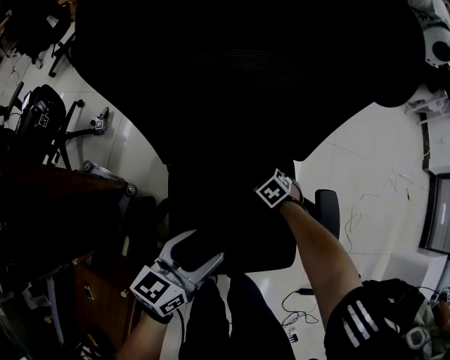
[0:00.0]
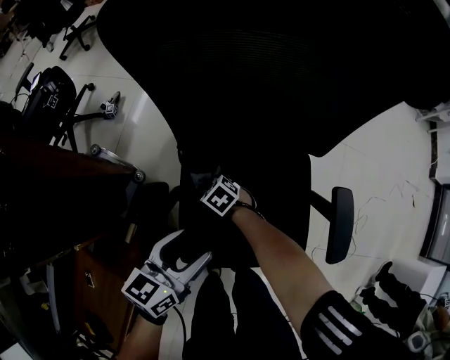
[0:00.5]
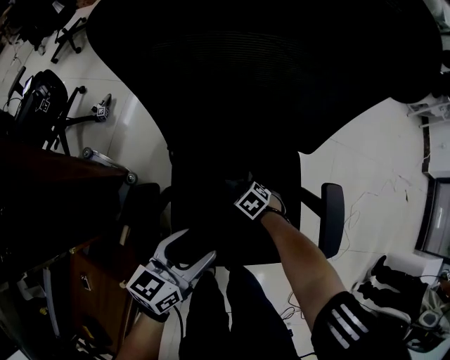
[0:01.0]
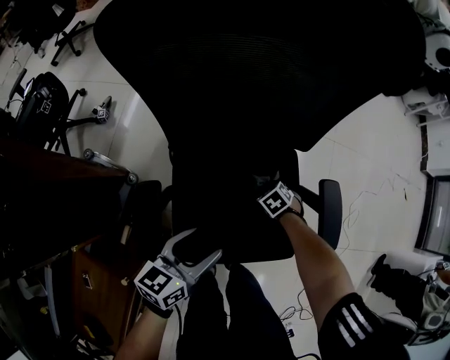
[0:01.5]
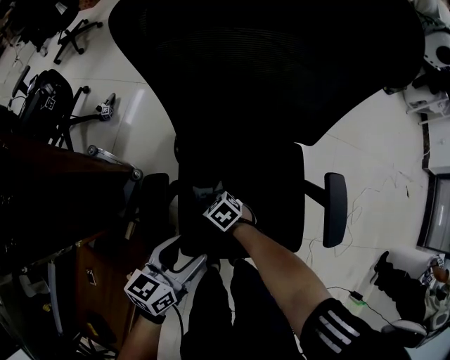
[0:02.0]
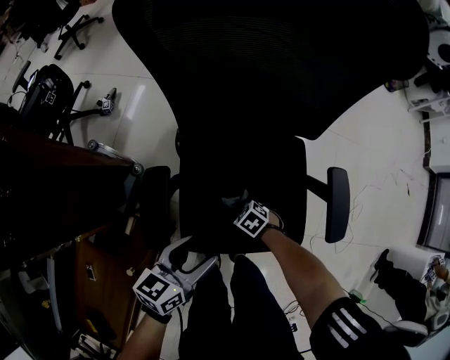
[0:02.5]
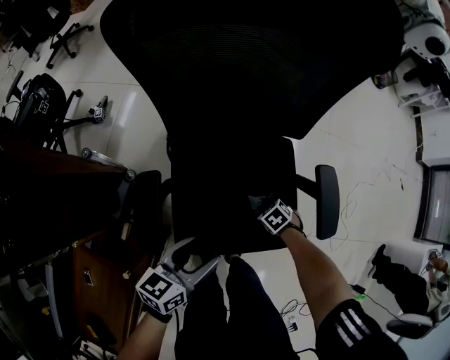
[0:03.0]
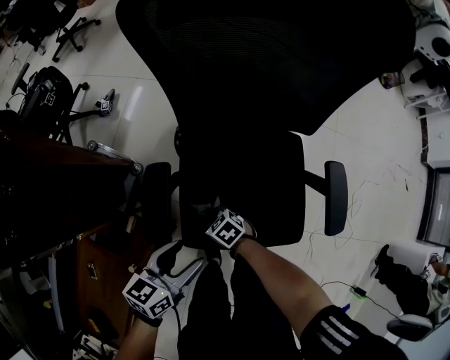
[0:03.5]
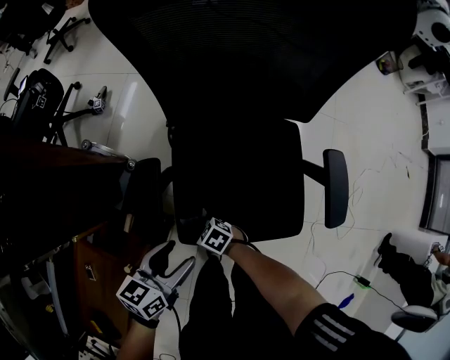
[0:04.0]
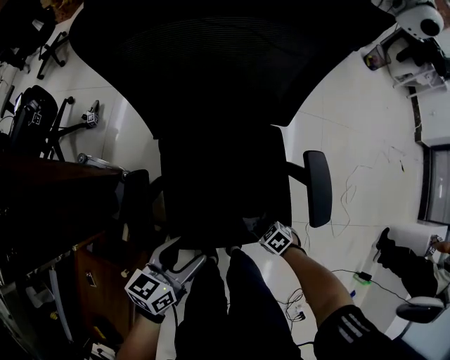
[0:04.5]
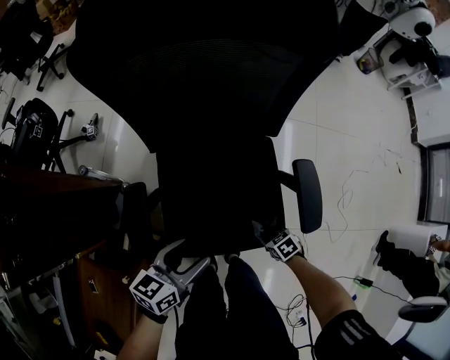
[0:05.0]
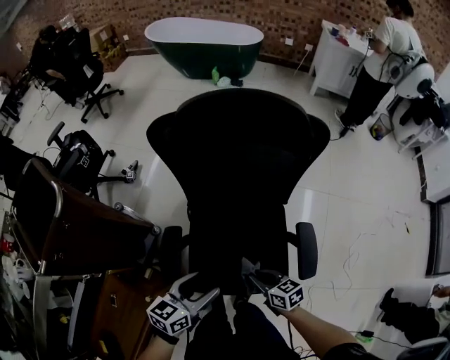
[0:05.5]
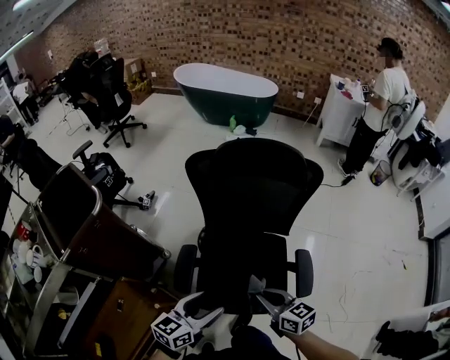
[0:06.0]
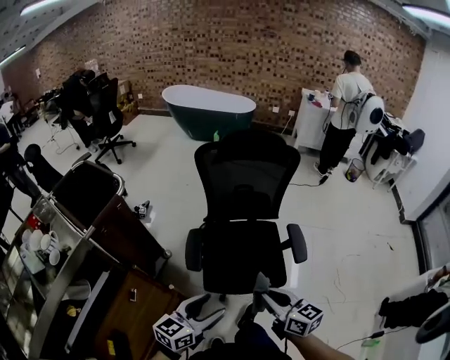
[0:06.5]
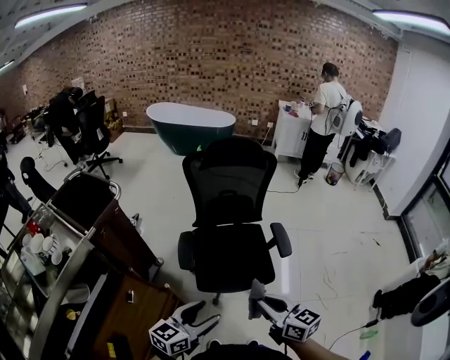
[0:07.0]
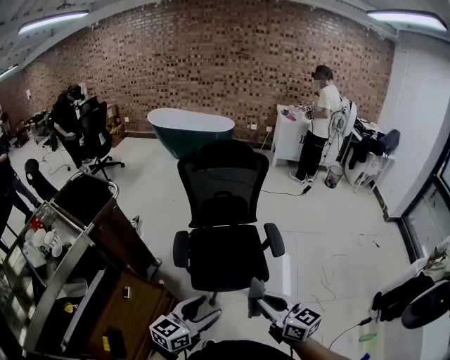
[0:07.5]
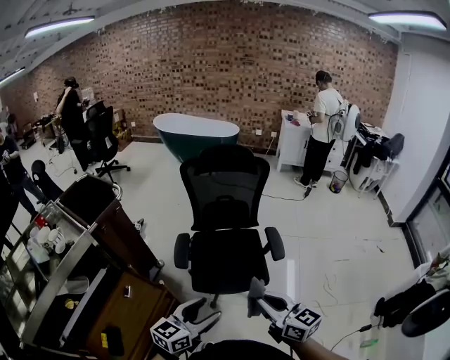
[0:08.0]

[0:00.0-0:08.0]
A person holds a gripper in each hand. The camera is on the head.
0:00.0 to 0:02.0: The left gripper moves some 10 cm. Meanwhile the right gripper changes place by about 25 cm.
0:02.0 to 0:04.0: The left gripper changes place by roughly 5 cm.
0:04.0 to 0:06.0: The left gripper moves upward, about 25 cm. The right gripper shifts roughly 40 cm upward, and tips its fingers upward by roughly 30 degrees.
0:06.0 to 0:08.0: The left gripper goes about 30 cm backward, while the right gripper heads backward and upward, covering about 40 cm, and swivels roughly 20 degrees.

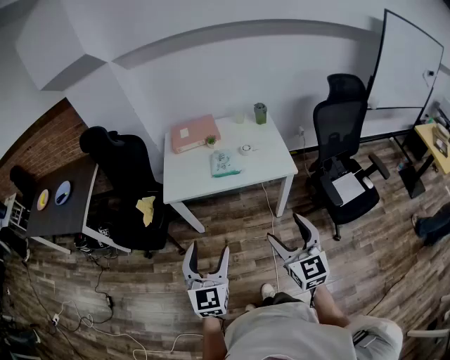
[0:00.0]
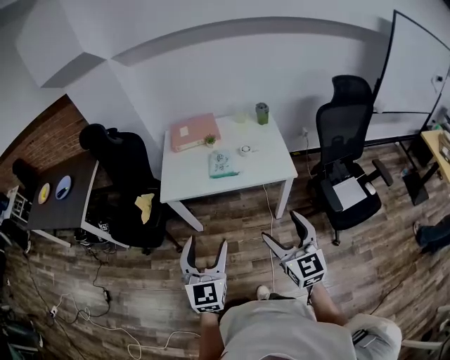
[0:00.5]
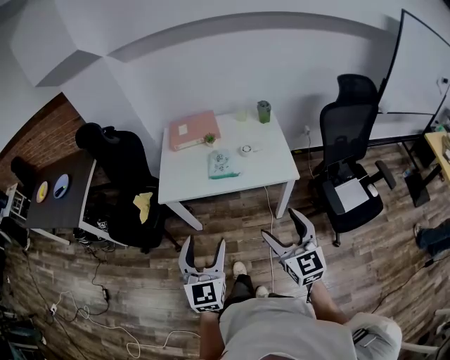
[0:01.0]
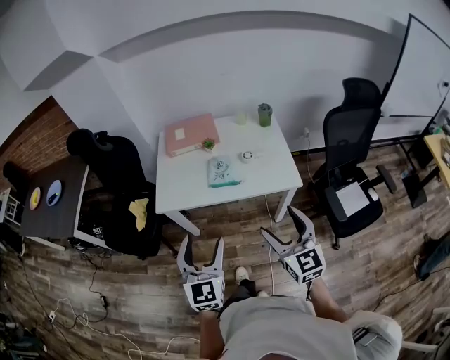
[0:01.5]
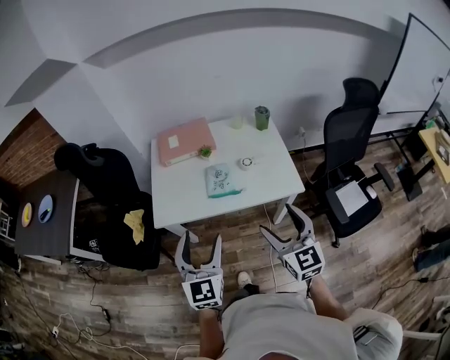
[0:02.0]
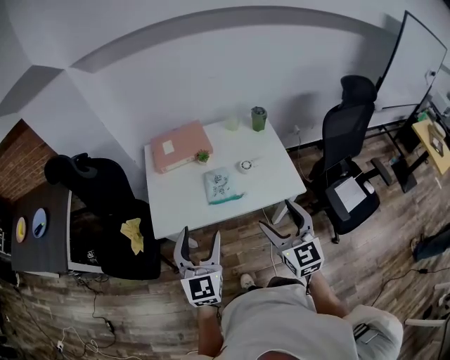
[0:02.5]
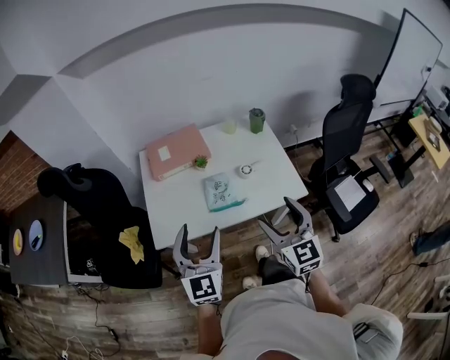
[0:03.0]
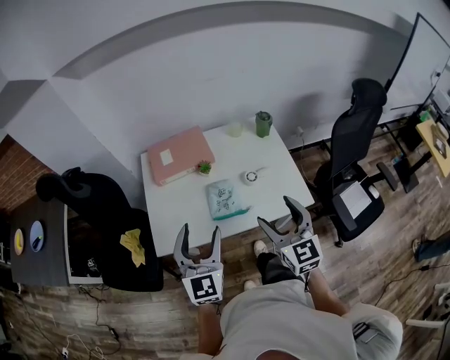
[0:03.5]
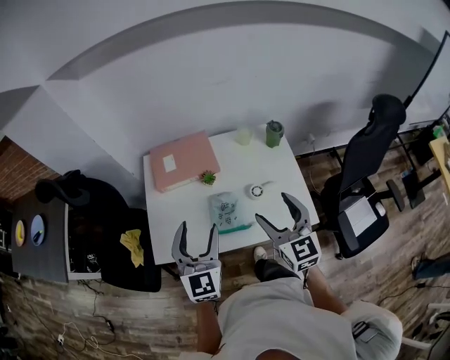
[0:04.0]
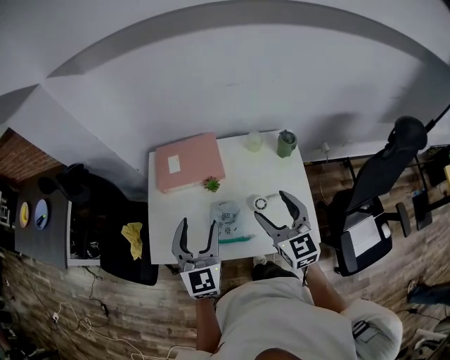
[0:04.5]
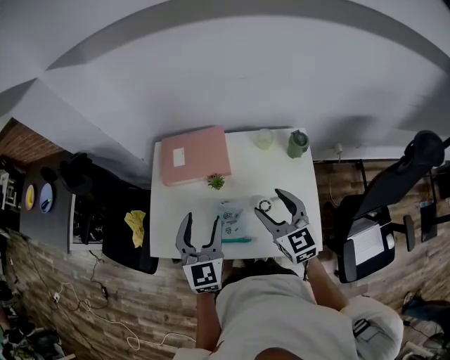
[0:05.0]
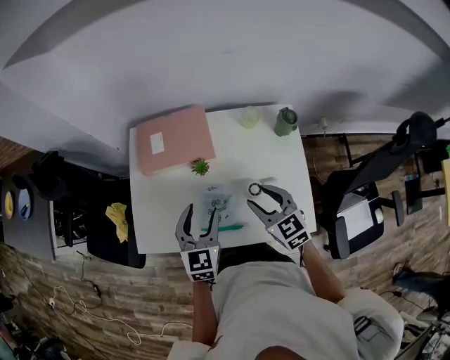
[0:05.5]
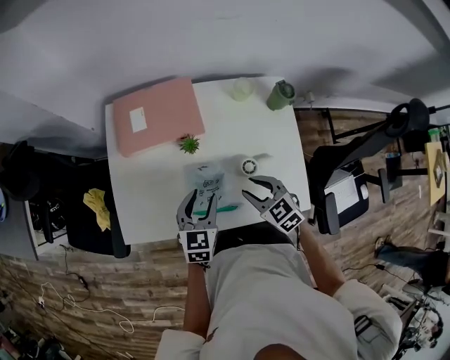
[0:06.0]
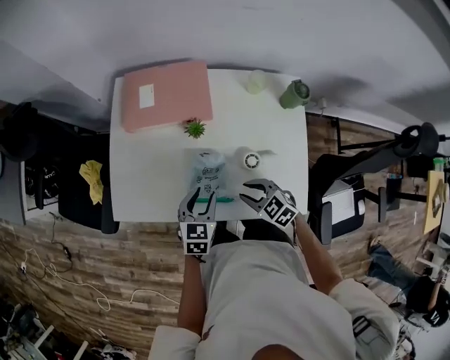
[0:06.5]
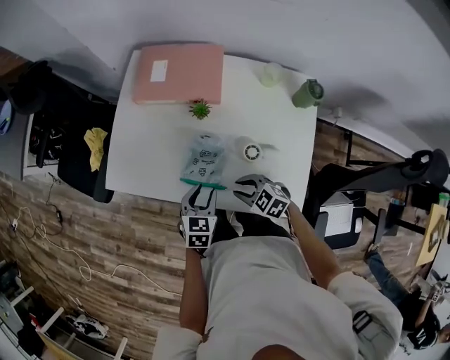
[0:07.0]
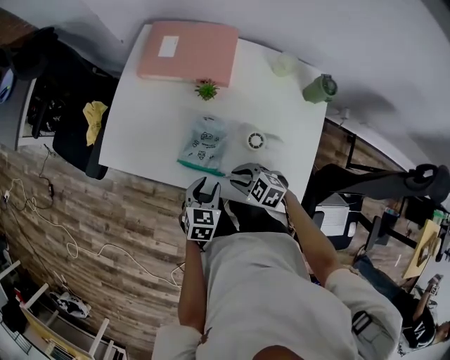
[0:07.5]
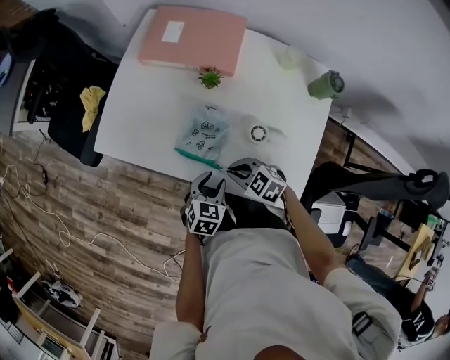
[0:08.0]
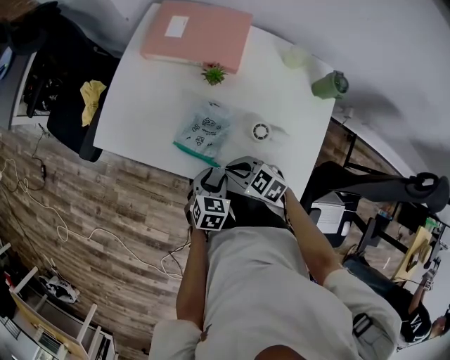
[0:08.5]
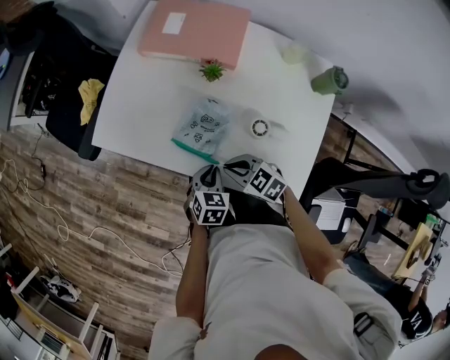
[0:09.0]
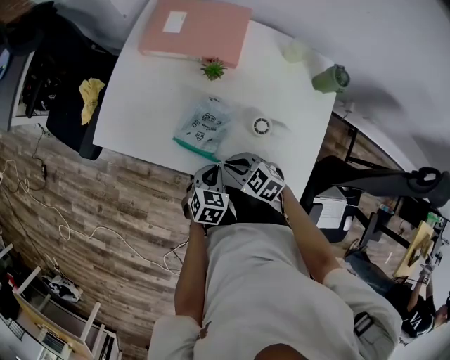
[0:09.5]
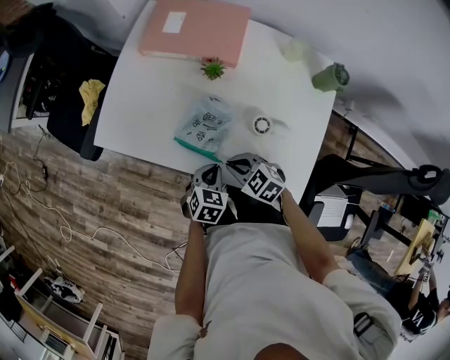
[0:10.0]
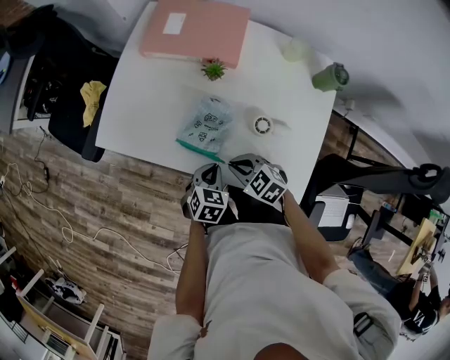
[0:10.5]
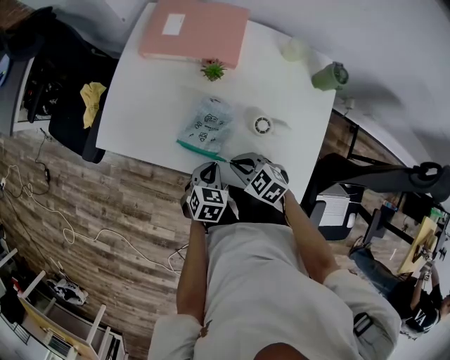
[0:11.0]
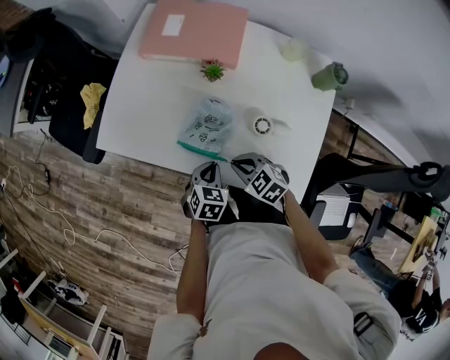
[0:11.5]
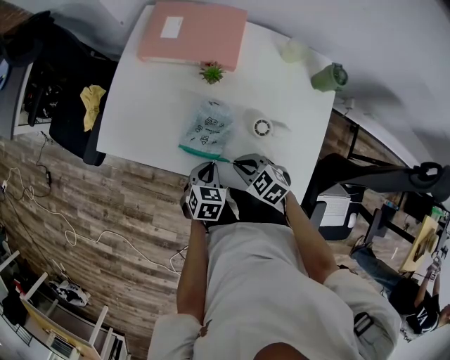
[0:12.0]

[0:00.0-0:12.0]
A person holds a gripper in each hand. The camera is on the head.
0:00.0 to 0:02.0: Both grippers move forward, some 20 cm.
0:02.0 to 0:04.0: Both grippers travel together forward, roughly 25 cm.
0:04.0 to 0:06.0: The right gripper is displaced downward by roughly 25 cm, tips its fingers downward by roughly 30 degrees, and closes its fingers. The left gripper shifts about 25 cm downward and forward, and rotates roughly 30 degrees.
0:06.0 to 0:08.0: The left gripper changes place by about 20 cm, and changes its angle by roughly 20 degrees, while the right gripper heads downward, covering some 10 cm, rotates some 50 degrees, and closes.
0:08.0 to 0:10.0: The left gripper closes its fingers.
0:10.0 to 0:12.0: The grippers stay close to where they were, moving slightly.

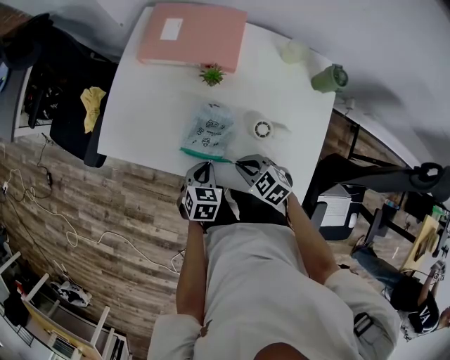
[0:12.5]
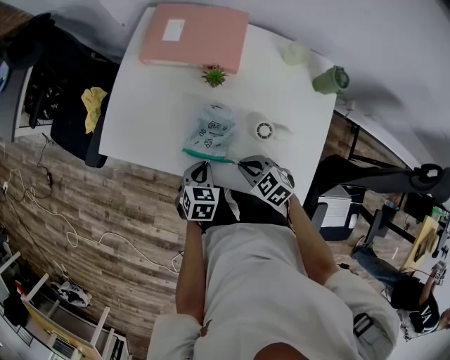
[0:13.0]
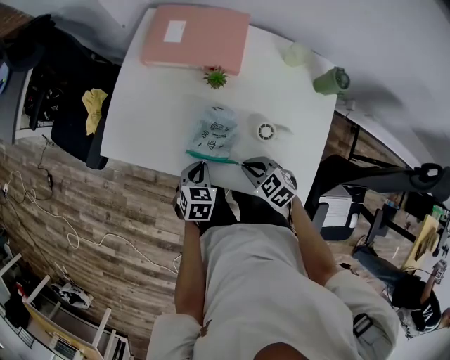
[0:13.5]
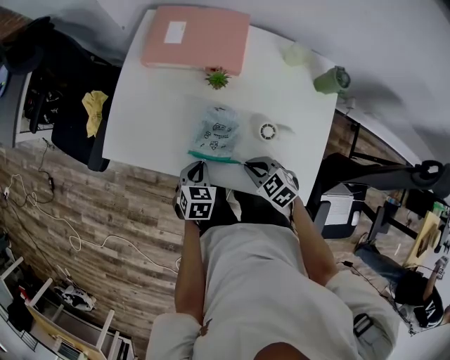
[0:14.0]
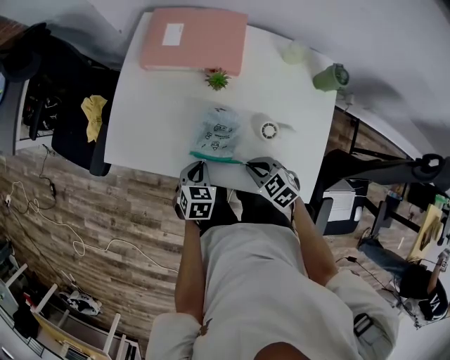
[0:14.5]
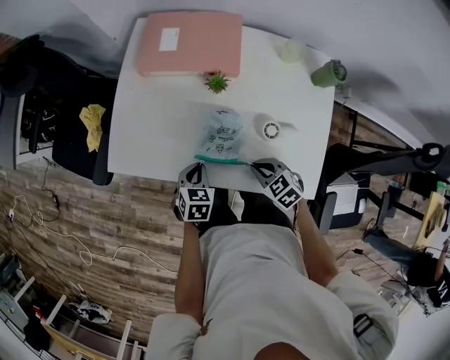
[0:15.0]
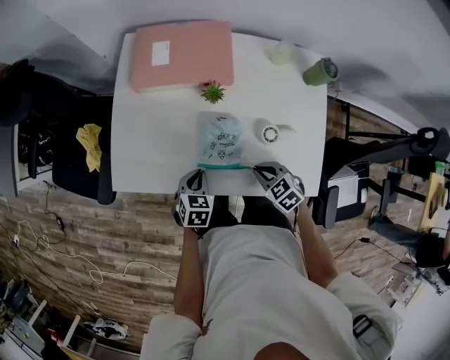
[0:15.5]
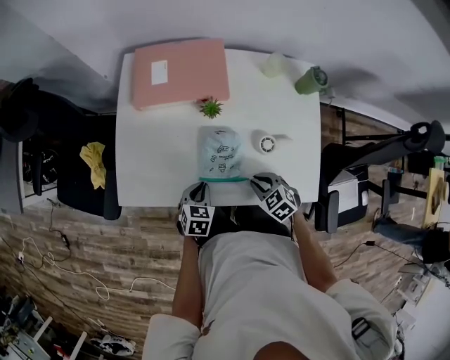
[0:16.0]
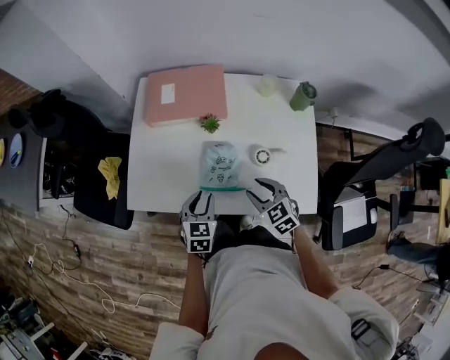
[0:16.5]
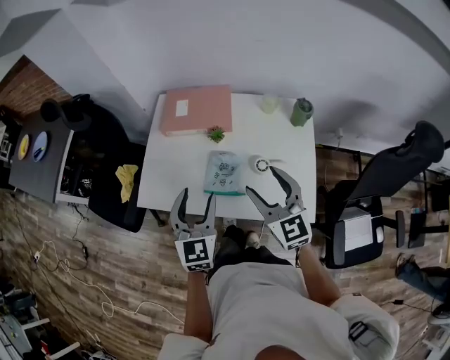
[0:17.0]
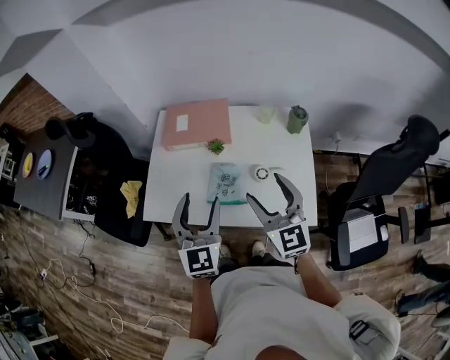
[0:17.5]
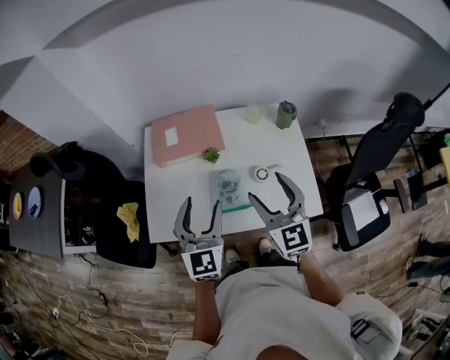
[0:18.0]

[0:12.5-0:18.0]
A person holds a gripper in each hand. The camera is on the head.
0:12.5 to 0:14.5: The left gripper changes place by approximately 5 cm.
0:14.5 to 0:16.0: There are only small adjustments of the grippers.
0:16.0 to 0:18.0: Both grippers travel together upward, about 35 cm. The left gripper angles its fingers upward, by some 50 degrees, and opens its fingers. The right gripper points its fingers some 50 degrees further upward, and opens up.

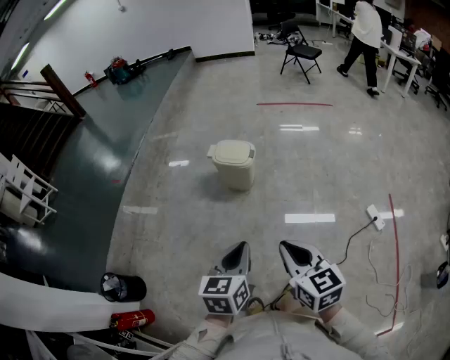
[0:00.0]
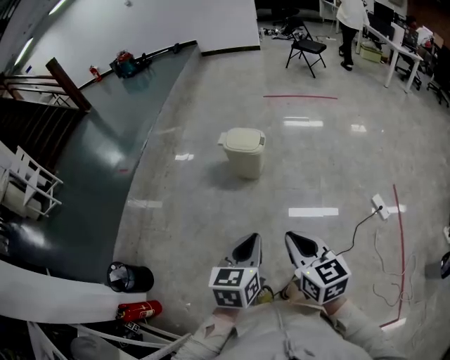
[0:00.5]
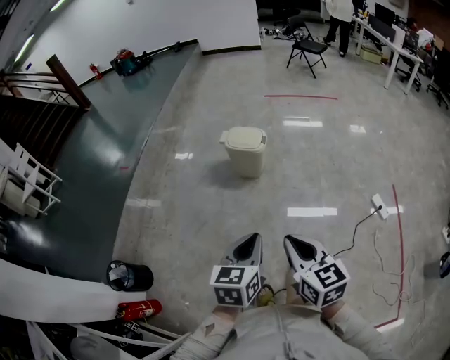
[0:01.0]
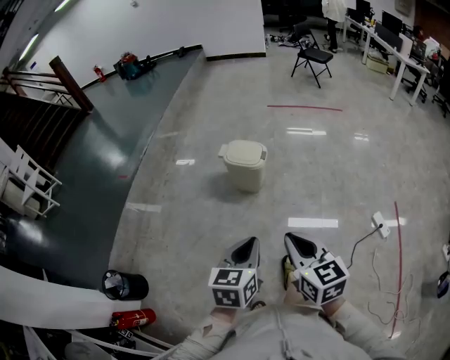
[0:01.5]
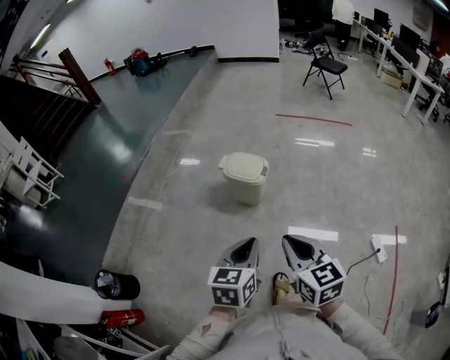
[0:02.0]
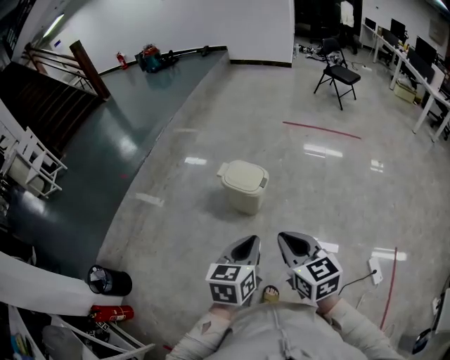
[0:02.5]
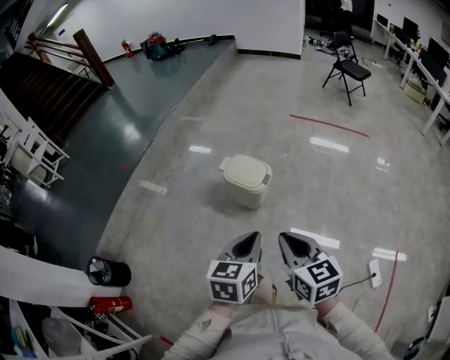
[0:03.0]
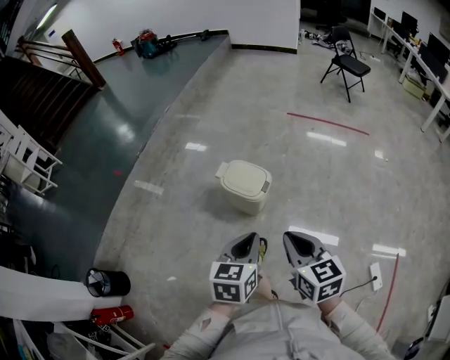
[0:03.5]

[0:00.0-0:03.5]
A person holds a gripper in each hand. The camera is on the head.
0:00.0 to 0:02.0: The two grippers go approximately 15 cm forward.
0:02.0 to 0:03.5: Both grippers move forward, approximately 20 cm.
